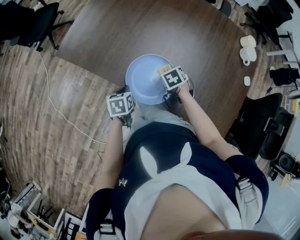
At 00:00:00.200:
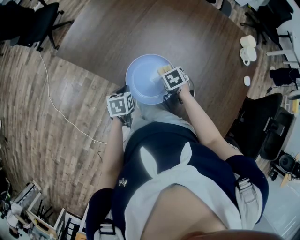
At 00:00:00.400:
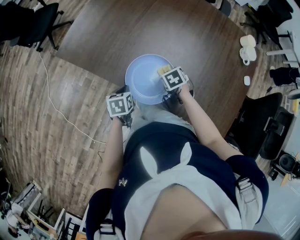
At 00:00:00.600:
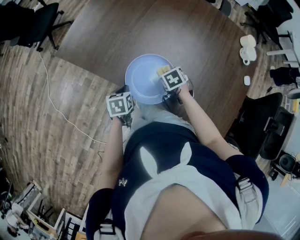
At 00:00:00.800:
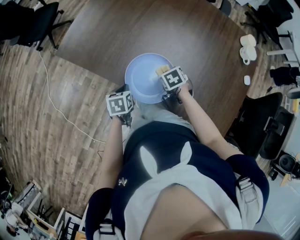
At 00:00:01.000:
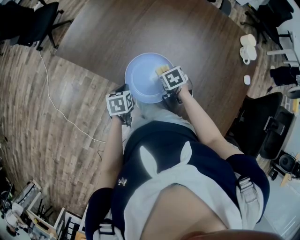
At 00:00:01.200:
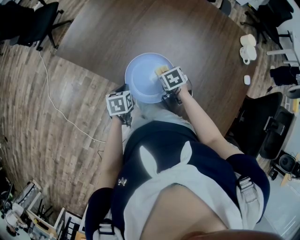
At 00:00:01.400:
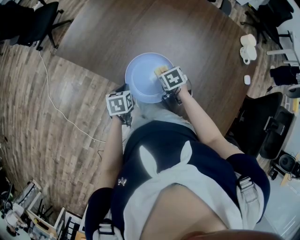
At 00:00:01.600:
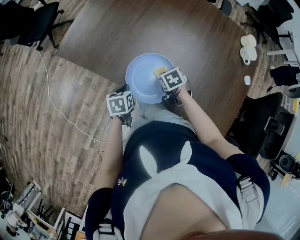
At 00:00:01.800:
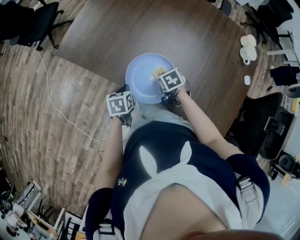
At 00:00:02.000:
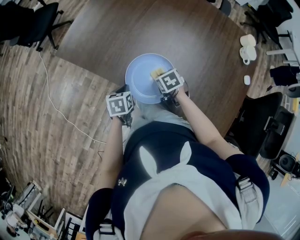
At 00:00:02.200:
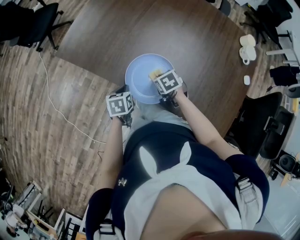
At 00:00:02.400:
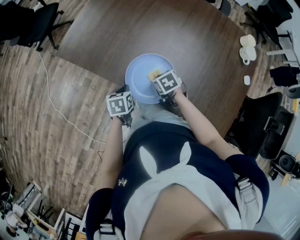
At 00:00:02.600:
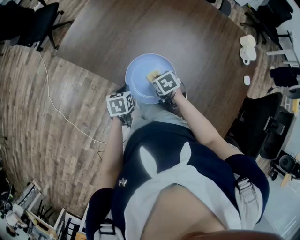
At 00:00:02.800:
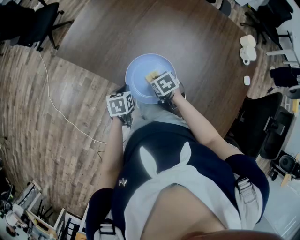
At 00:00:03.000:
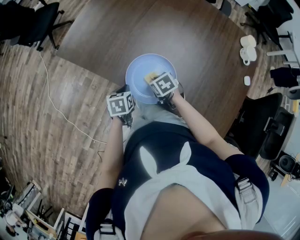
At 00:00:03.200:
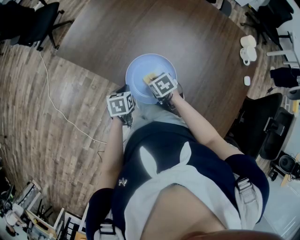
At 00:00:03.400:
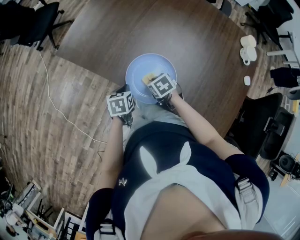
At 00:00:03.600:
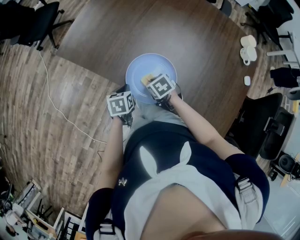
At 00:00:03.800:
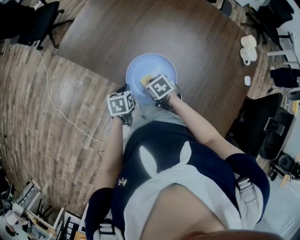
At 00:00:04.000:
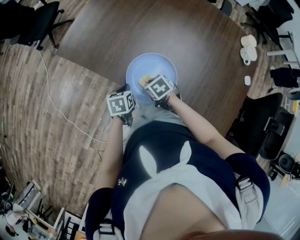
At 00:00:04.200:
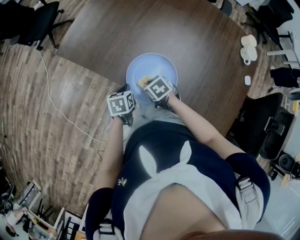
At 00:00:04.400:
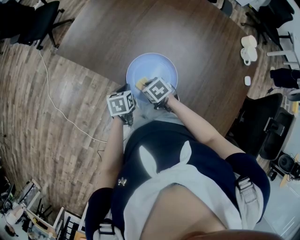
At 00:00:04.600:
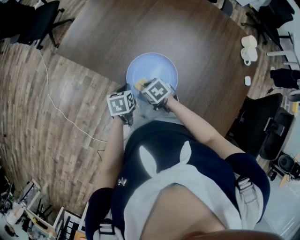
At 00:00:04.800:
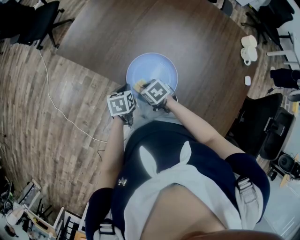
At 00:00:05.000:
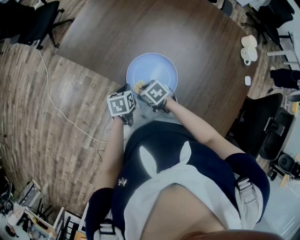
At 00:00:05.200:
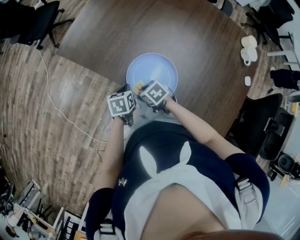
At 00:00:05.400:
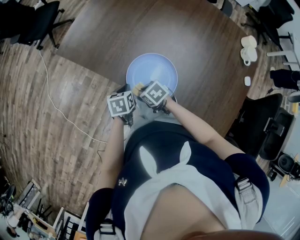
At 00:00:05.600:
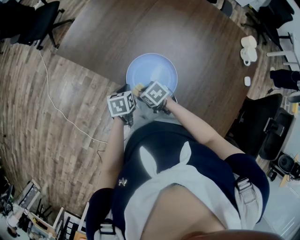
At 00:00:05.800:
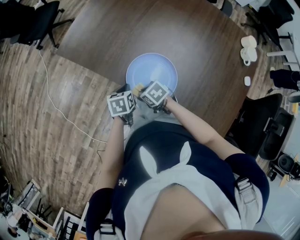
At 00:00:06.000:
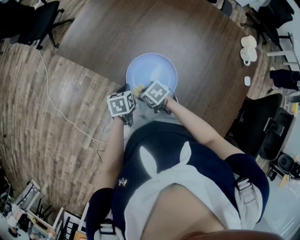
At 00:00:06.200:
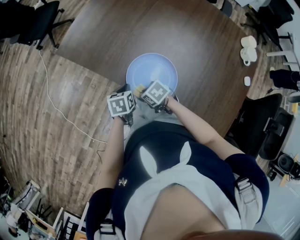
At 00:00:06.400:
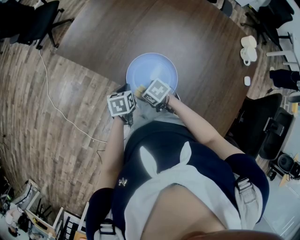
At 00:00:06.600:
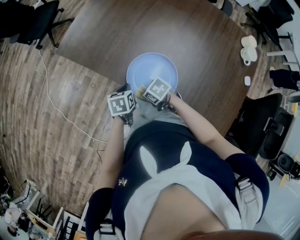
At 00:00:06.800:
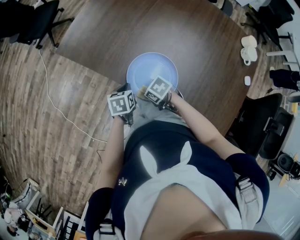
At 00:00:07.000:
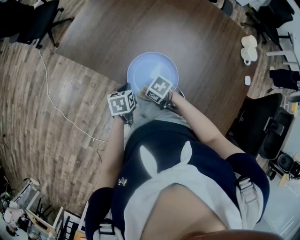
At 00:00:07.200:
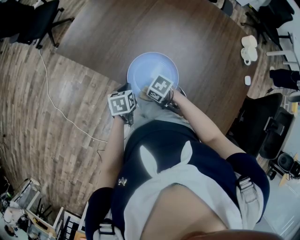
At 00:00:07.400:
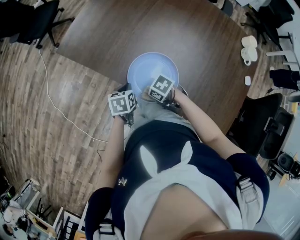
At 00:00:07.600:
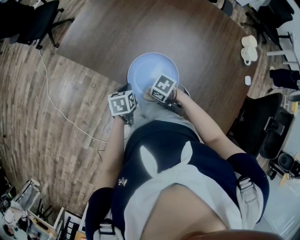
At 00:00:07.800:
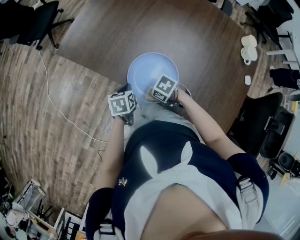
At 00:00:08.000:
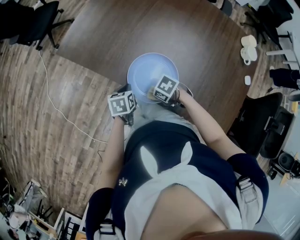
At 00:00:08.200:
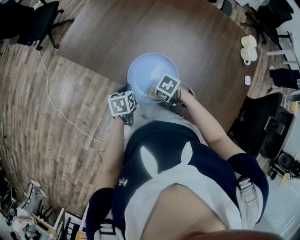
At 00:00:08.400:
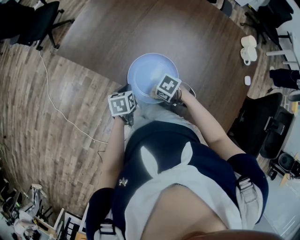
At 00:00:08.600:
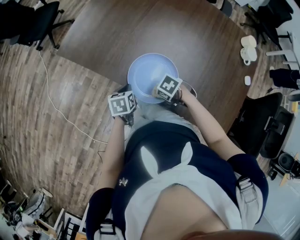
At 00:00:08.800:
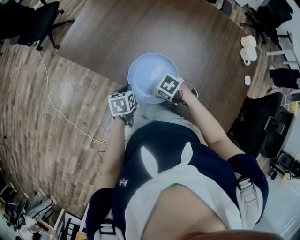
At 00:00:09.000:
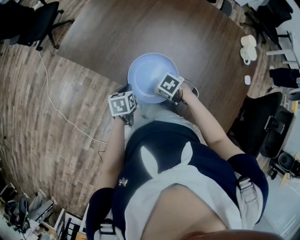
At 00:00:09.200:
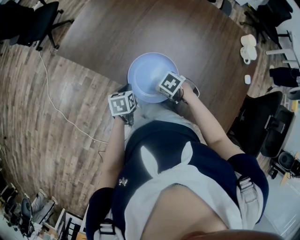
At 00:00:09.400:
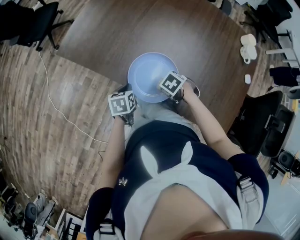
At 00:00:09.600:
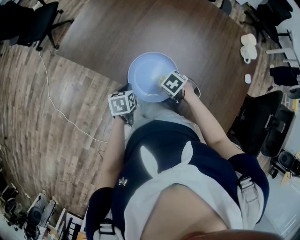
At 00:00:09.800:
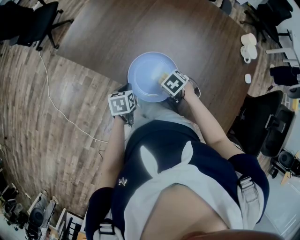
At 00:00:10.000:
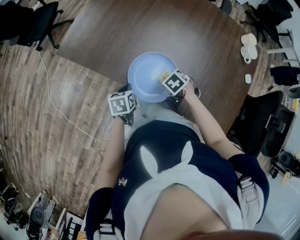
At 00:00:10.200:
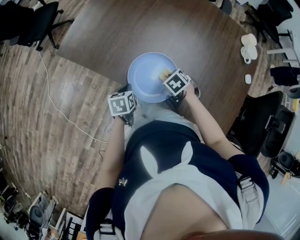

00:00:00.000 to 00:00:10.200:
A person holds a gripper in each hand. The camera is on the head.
00:00:00.000 to 00:00:01.400: There are only small adjustments of the grippers.
00:00:01.400 to 00:00:03.000: The right gripper goes roughly 5 cm to the left.
00:00:03.000 to 00:00:04.400: The right gripper is displaced to the left by some 5 cm.
00:00:04.400 to 00:00:05.800: The grippers make only small movements.
00:00:05.800 to 00:00:07.200: The grippers stay close to where they were, moving slightly.
00:00:07.200 to 00:00:08.800: The right gripper changes place by approximately 5 cm.
00:00:08.800 to 00:00:10.200: The right gripper moves about 10 cm, and swivels approximately 20 degrees.

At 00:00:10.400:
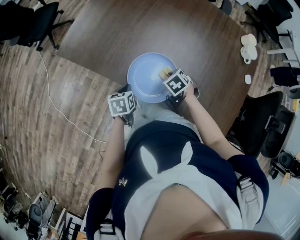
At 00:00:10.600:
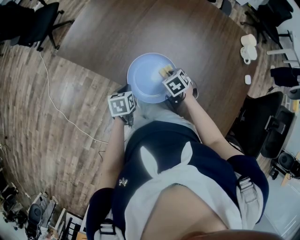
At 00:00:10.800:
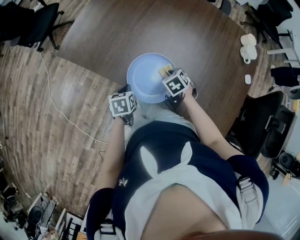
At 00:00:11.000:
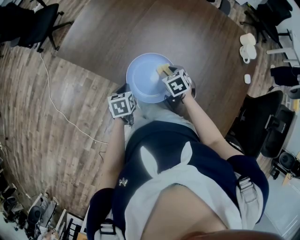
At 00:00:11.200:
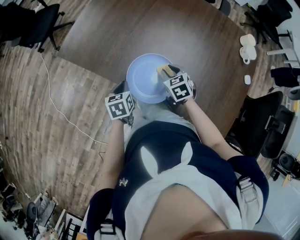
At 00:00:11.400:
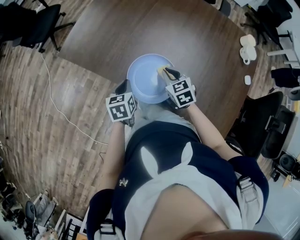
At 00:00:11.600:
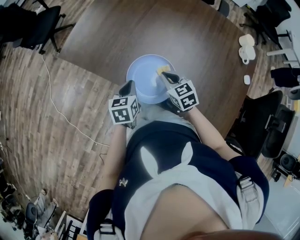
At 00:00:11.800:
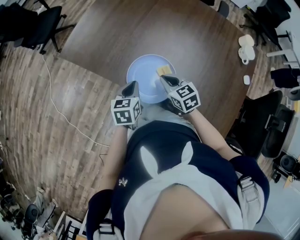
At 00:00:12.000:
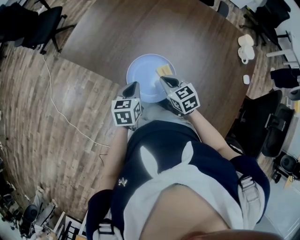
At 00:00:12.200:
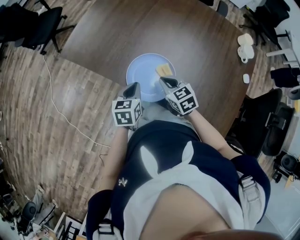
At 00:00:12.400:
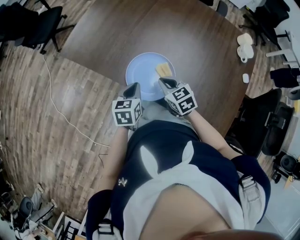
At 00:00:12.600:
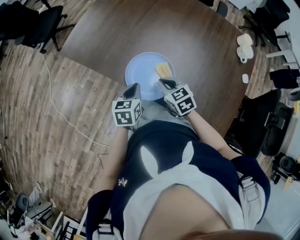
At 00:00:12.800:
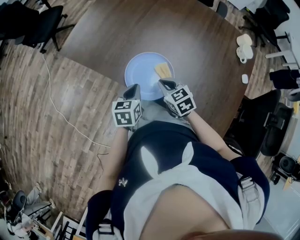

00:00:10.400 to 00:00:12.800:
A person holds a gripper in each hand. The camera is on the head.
00:00:10.400 to 00:00:11.600: The two grippers go approximately 10 cm upward. The right gripper tips its fingers upward by approximately 30 degrees, and opens and closes again.
00:00:11.600 to 00:00:12.800: The right gripper moves backward, roughly 5 cm. The left gripper ends up about 5 cm from where it was.

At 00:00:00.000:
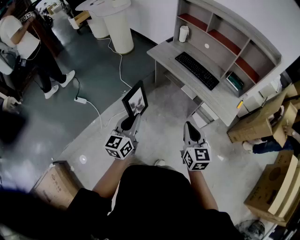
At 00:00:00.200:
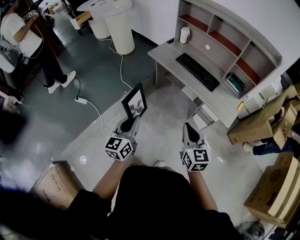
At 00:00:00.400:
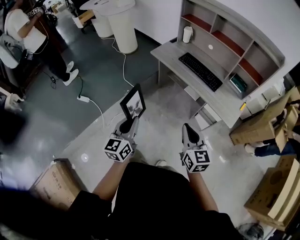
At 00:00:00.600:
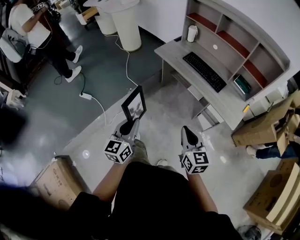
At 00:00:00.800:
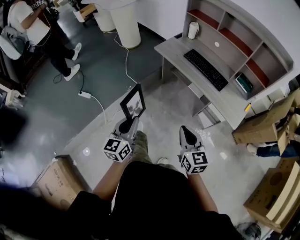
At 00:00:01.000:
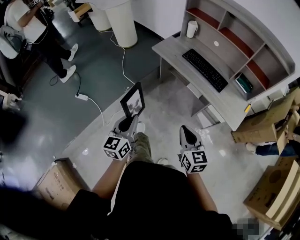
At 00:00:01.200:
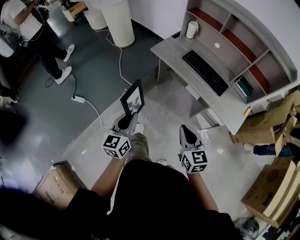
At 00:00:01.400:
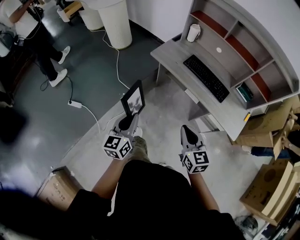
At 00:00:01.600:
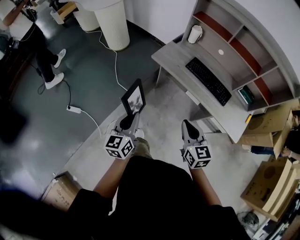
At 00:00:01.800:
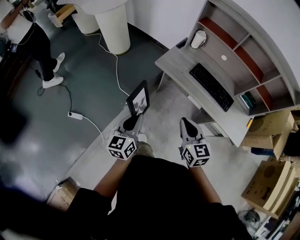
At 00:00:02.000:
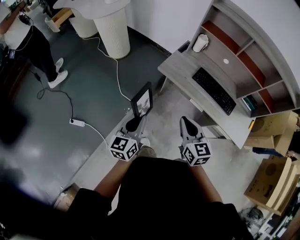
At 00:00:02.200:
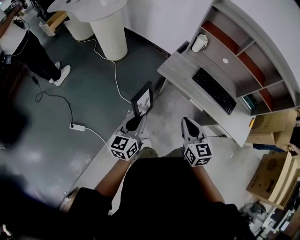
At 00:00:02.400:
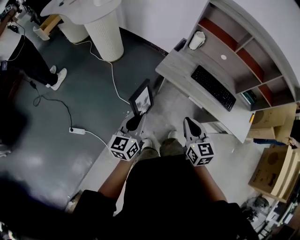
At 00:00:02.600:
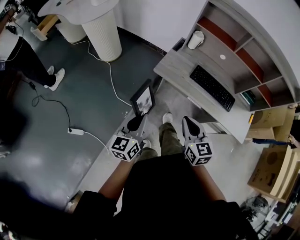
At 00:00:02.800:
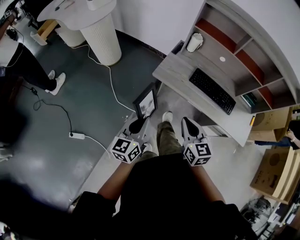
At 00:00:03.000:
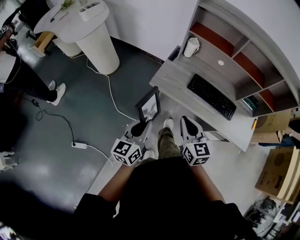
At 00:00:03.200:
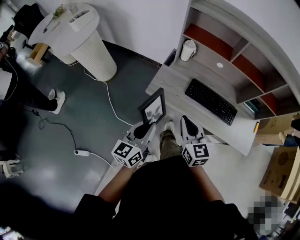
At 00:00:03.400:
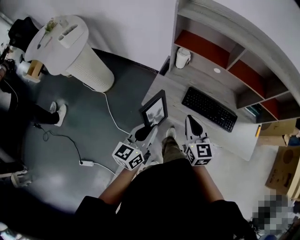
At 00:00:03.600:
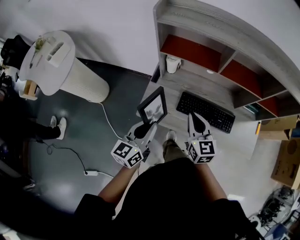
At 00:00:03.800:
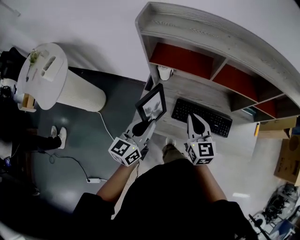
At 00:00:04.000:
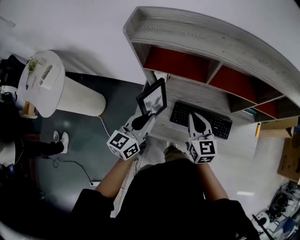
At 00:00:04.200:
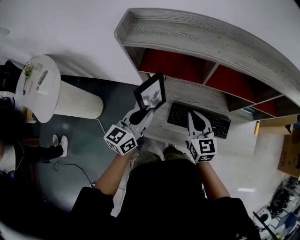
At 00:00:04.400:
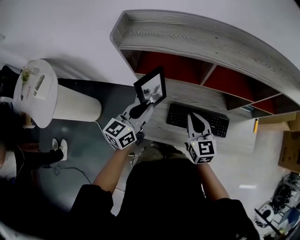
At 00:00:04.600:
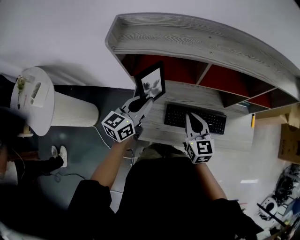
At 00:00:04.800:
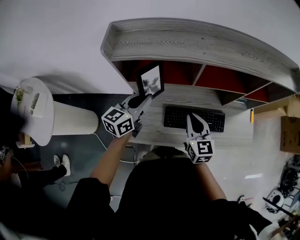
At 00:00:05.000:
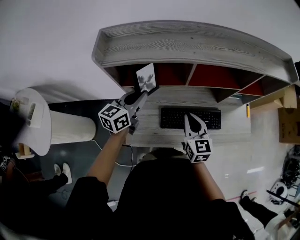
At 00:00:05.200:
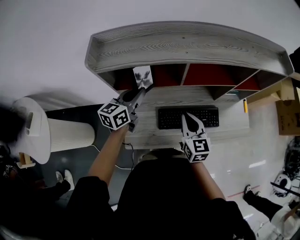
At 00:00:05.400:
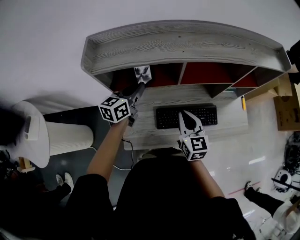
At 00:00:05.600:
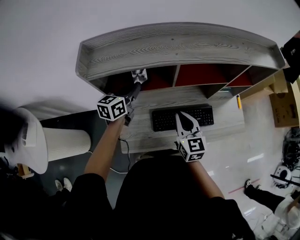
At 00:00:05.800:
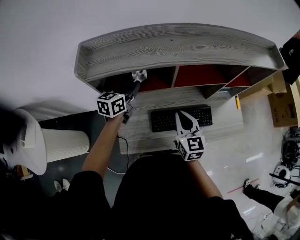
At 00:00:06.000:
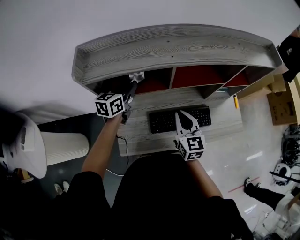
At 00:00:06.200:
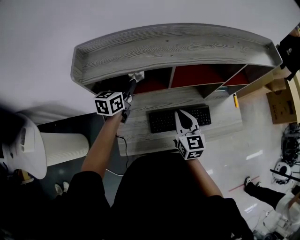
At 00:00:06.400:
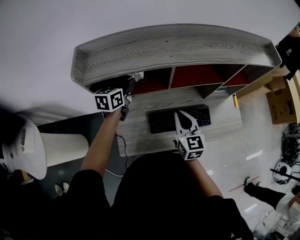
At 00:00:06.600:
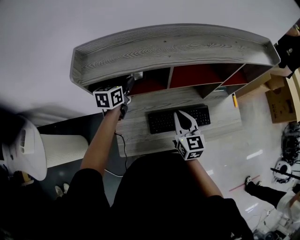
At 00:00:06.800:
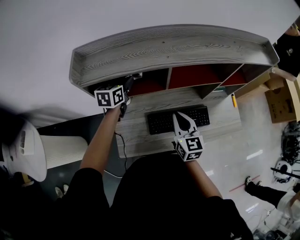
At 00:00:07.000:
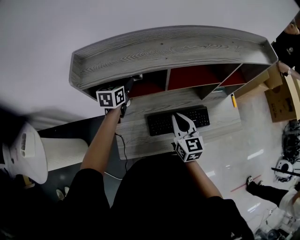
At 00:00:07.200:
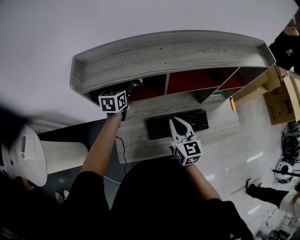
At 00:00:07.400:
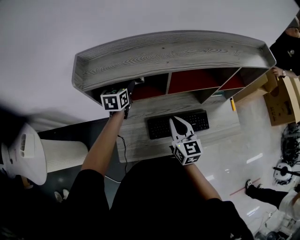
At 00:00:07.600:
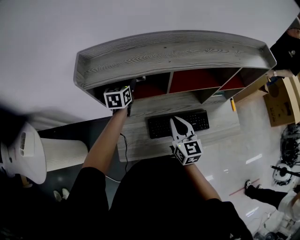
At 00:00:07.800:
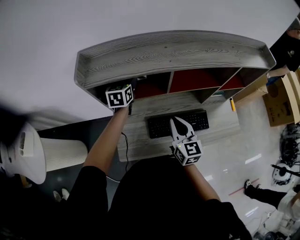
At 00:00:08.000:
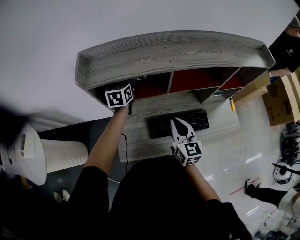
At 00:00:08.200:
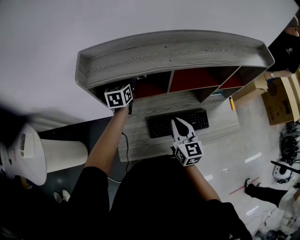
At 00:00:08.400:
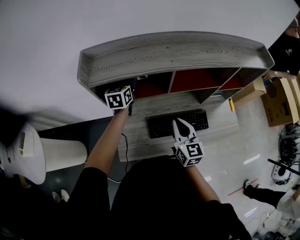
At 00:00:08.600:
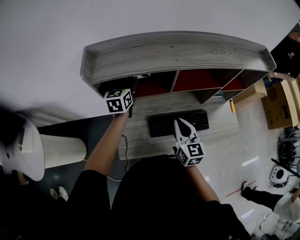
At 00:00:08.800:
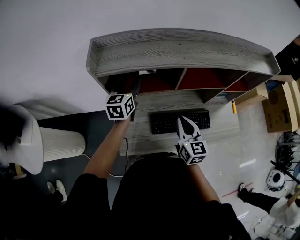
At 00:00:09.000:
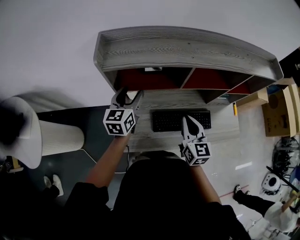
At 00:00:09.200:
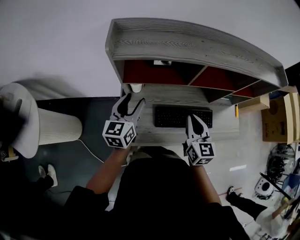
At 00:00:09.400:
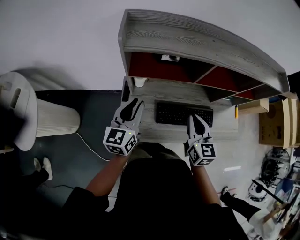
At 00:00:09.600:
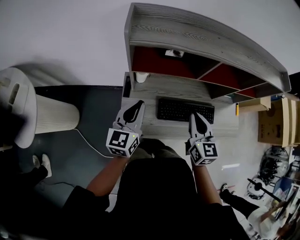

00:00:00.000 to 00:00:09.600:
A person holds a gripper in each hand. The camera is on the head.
00:00:00.000 to 00:00:01.600: Both grippers move forward and to the left, some 25 cm.
00:00:01.600 to 00:00:03.200: Both grippers move forward, about 25 cm. The left gripper swivels roughly 30 degrees.
00:00:03.200 to 00:00:04.800: The left gripper shifts by approximately 40 cm, and turns by about 30 degrees, while the right gripper moves about 30 cm, and rotates approximately 30 degrees.
00:00:04.800 to 00:00:06.400: The left gripper travels forward by some 15 cm.
00:00:06.400 to 00:00:08.000: The left gripper opens.
00:00:08.000 to 00:00:09.600: The right gripper shifts by about 5 cm. Meanwhile the left gripper moves backward, some 25 cm, and closes.

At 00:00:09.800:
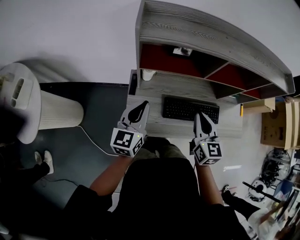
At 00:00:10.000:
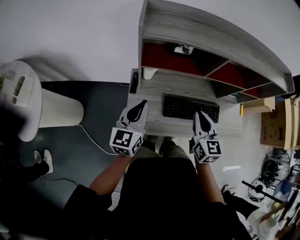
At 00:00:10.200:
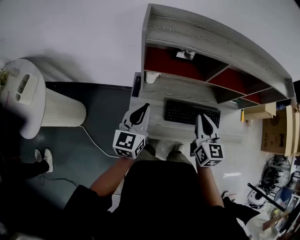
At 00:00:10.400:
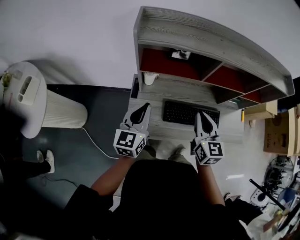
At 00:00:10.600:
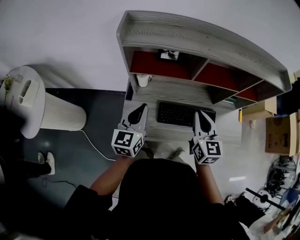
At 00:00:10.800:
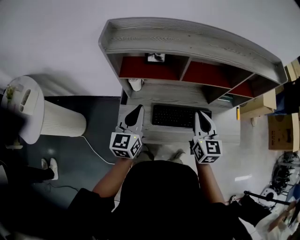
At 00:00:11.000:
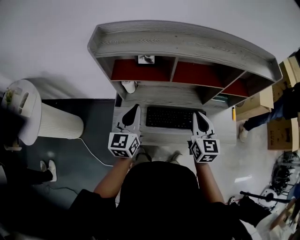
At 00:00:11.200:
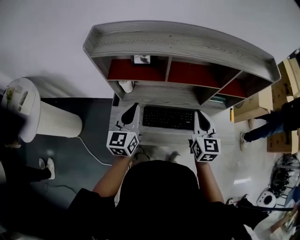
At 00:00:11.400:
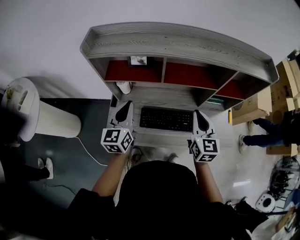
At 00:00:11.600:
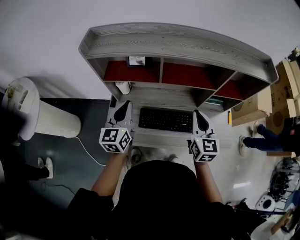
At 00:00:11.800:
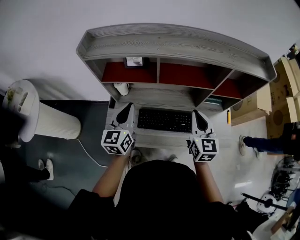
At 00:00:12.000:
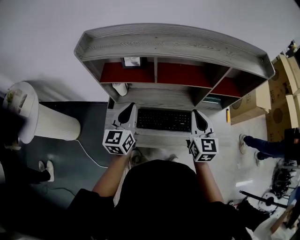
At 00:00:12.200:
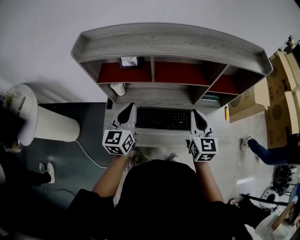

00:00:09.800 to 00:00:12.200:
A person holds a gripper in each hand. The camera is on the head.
00:00:09.800 to 00:00:11.000: The grippers both shift to the right by approximately 15 cm.
00:00:11.000 to 00:00:12.200: Both grippers travel together to the right, roughly 5 cm.
